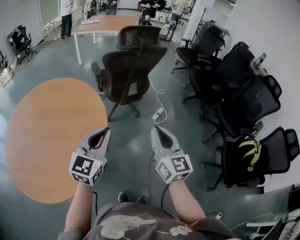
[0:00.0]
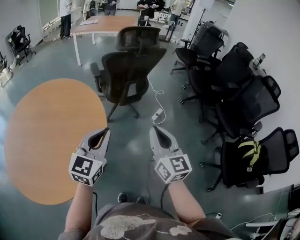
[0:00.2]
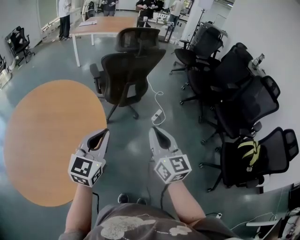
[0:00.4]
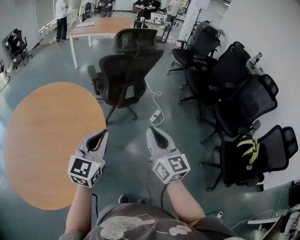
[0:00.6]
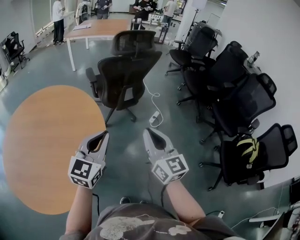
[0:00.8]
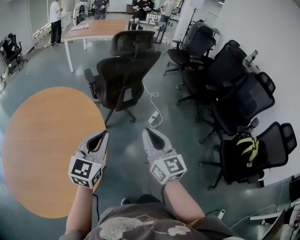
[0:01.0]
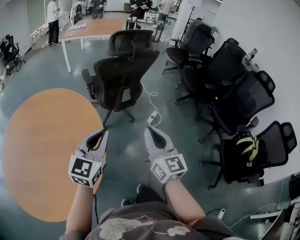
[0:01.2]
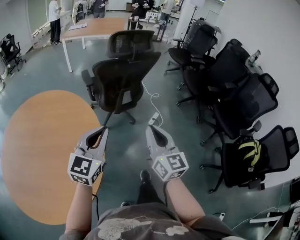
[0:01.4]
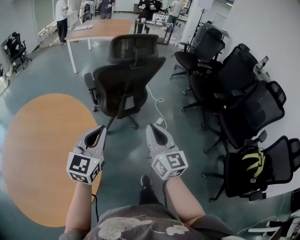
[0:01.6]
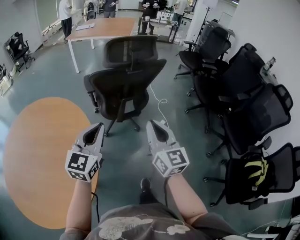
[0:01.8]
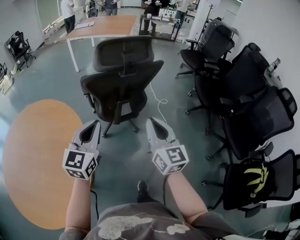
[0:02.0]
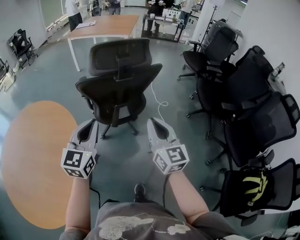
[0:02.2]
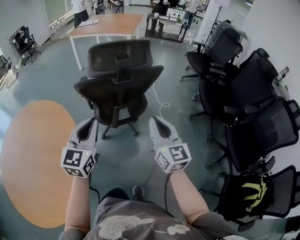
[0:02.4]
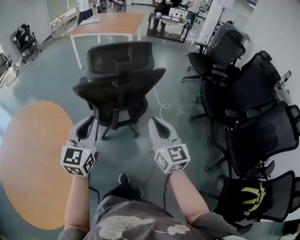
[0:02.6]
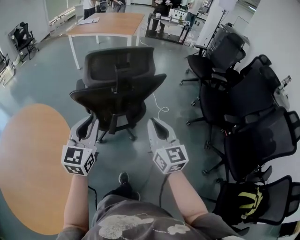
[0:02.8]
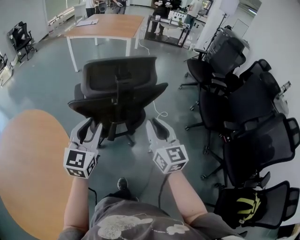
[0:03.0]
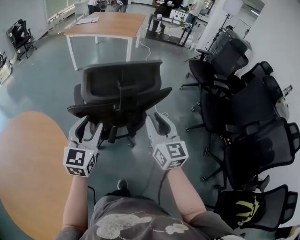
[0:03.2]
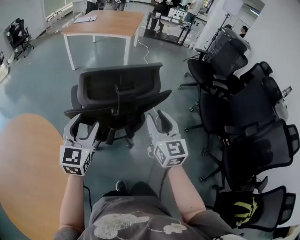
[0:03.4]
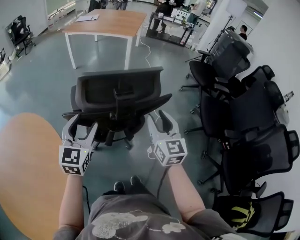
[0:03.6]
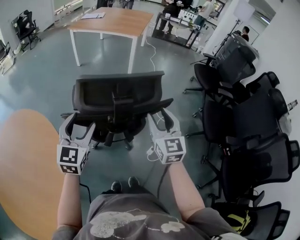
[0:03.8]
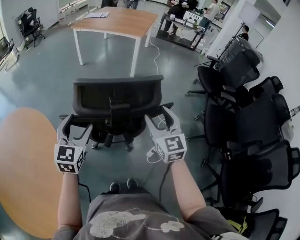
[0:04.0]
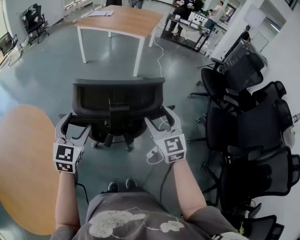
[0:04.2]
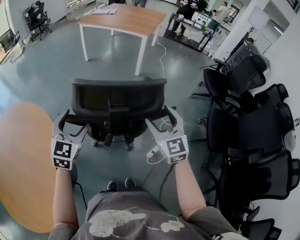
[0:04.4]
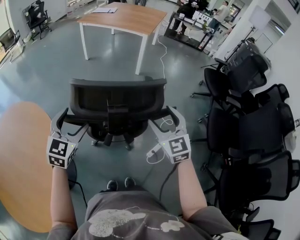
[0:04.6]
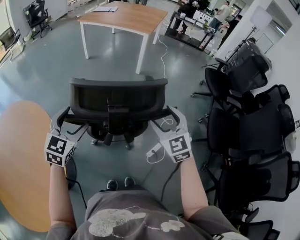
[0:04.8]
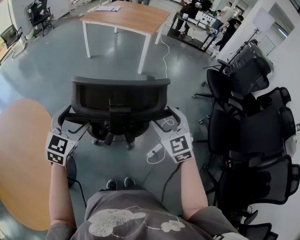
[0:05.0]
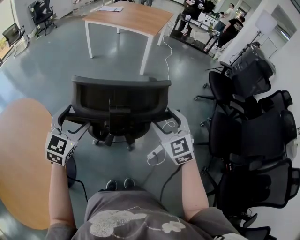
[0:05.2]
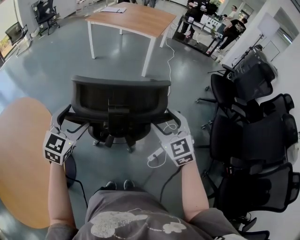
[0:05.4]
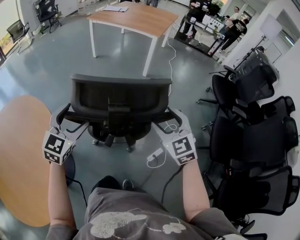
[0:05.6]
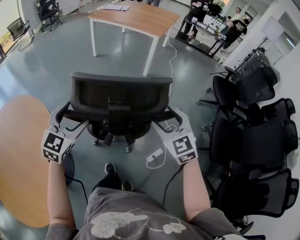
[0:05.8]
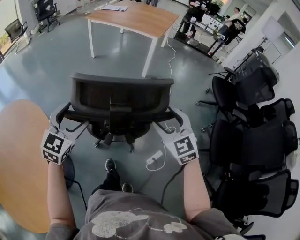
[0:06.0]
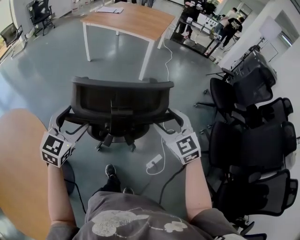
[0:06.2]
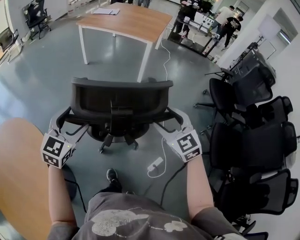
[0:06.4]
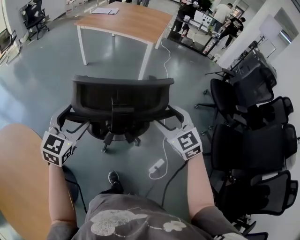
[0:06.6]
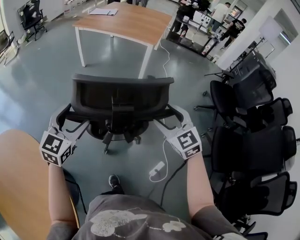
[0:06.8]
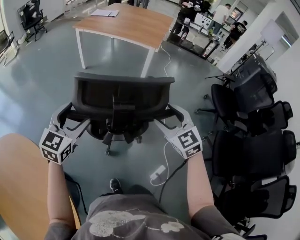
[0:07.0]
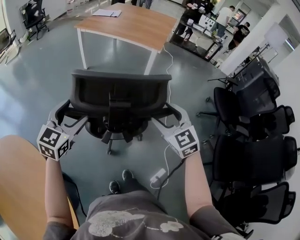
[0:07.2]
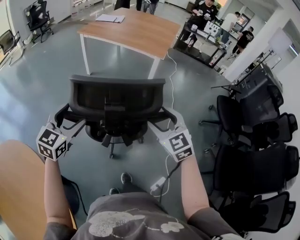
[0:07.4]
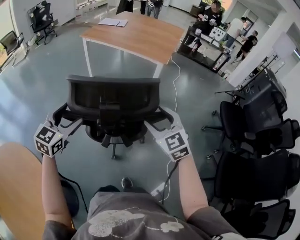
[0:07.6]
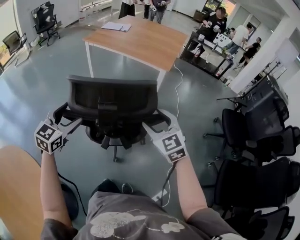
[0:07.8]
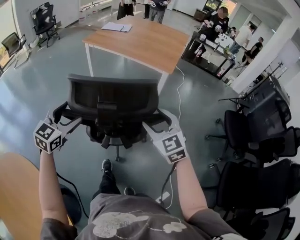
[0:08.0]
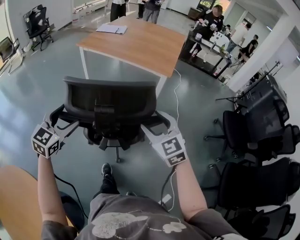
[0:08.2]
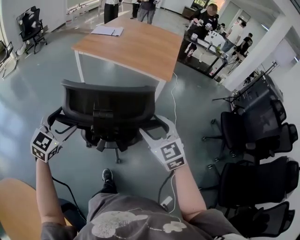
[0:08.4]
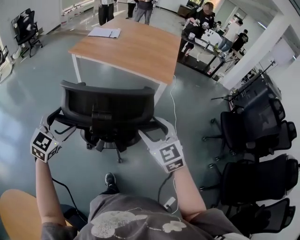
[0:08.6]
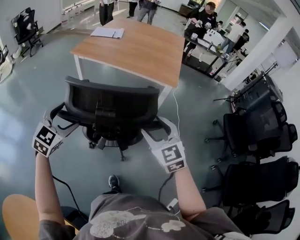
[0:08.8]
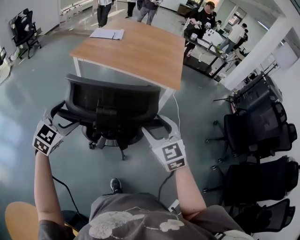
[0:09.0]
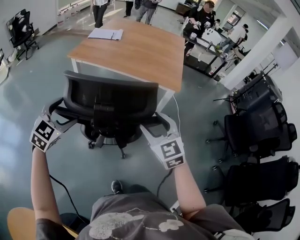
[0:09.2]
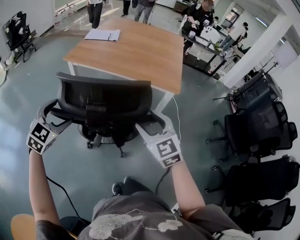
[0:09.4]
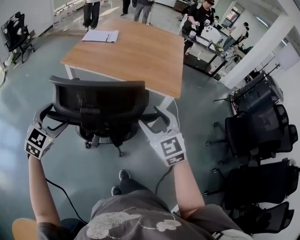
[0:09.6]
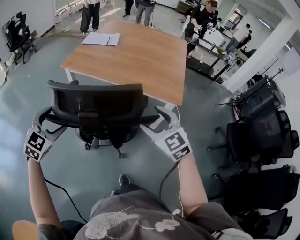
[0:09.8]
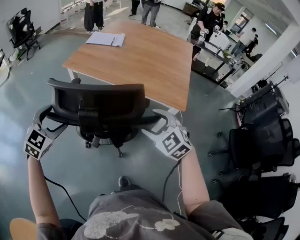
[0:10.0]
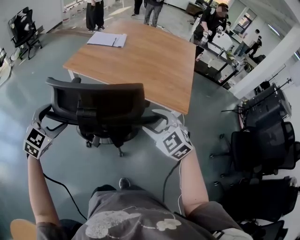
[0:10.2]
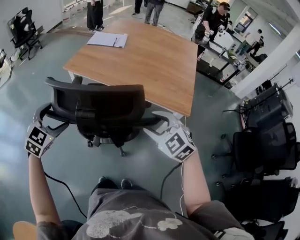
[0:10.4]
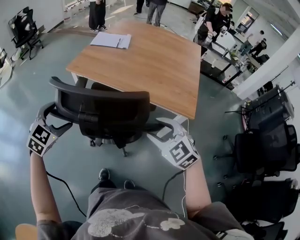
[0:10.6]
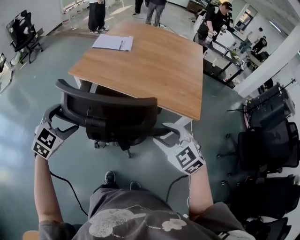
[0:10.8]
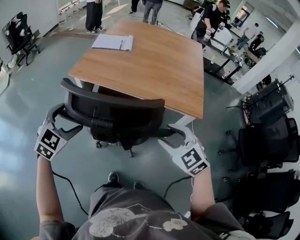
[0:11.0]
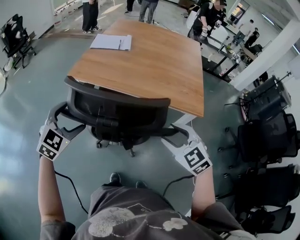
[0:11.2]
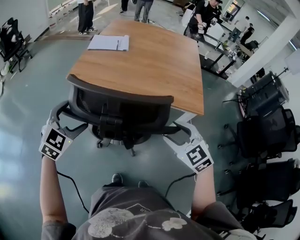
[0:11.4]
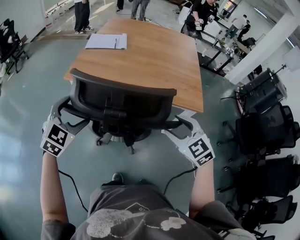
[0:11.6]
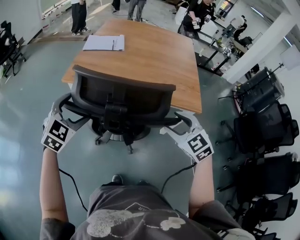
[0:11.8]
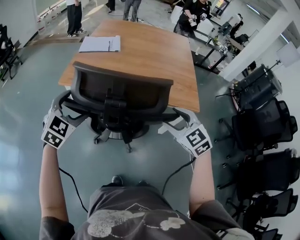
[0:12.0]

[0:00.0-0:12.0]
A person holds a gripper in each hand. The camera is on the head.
0:00.0 to 0:01.6: The two grippers go some 15 cm forward.
0:01.6 to 0:03.0: The two grippers go about 30 cm forward.
0:03.0 to 0:04.4: Both grippers move forward, about 15 cm. The left gripper rotates roughly 20 degrees, and opens its fingers, while the right gripper changes its angle by roughly 30 degrees, and opens up.
0:04.4 to 0:06.0: The right gripper moves forward, about 5 cm.
0:06.0 to 0:07.6: The grippers both shift forward by roughly 30 cm.
0:07.6 to 0:09.0: Both grippers move forward and to the left, roughly 30 cm. The left gripper rotates some 20 degrees.
0:09.0 to 0:10.4: The two grippers go about 20 cm forward. The right gripper rotates roughly 30 degrees.
0:10.4 to 0:12.0: The left gripper is displaced forward by some 15 cm. The right gripper travels forward by about 10 cm, and rotates approximately 20 degrees.

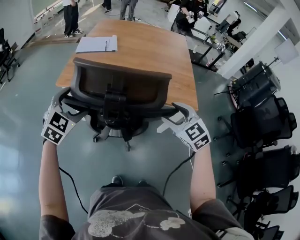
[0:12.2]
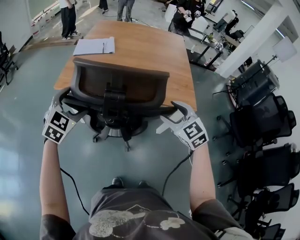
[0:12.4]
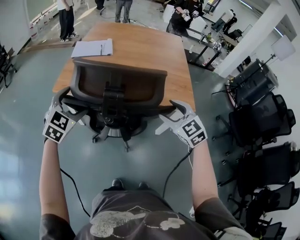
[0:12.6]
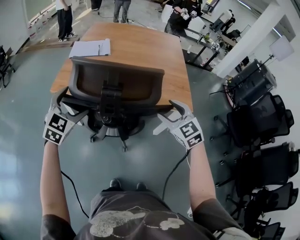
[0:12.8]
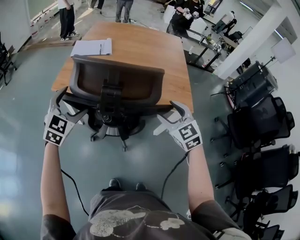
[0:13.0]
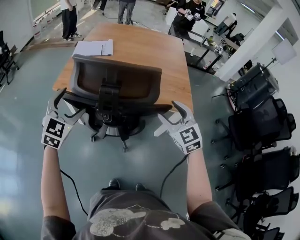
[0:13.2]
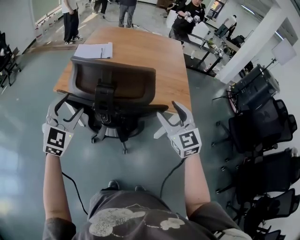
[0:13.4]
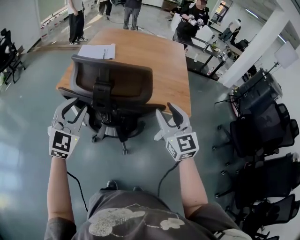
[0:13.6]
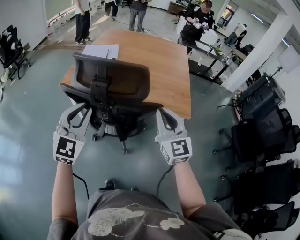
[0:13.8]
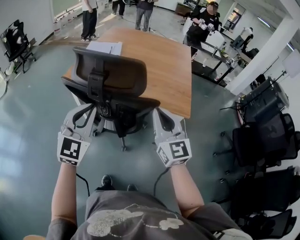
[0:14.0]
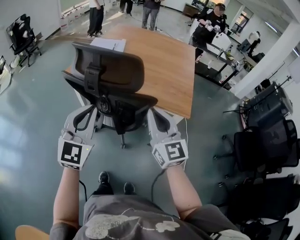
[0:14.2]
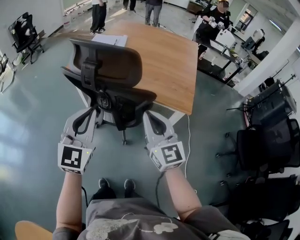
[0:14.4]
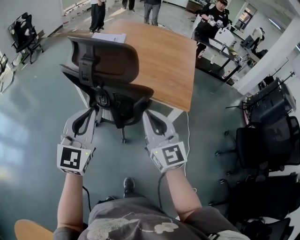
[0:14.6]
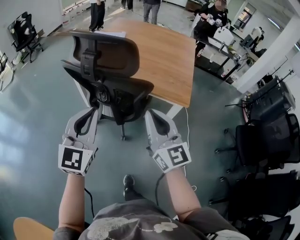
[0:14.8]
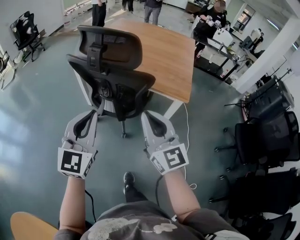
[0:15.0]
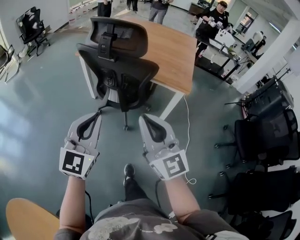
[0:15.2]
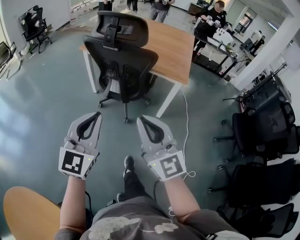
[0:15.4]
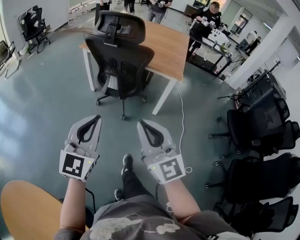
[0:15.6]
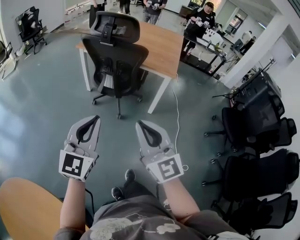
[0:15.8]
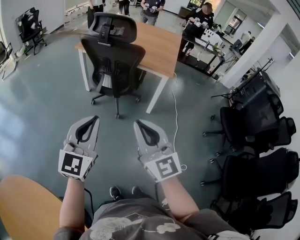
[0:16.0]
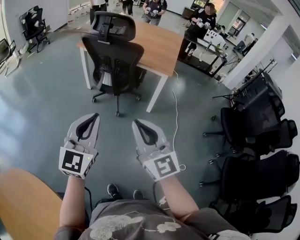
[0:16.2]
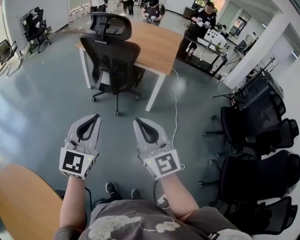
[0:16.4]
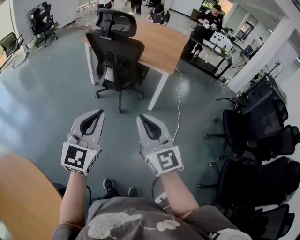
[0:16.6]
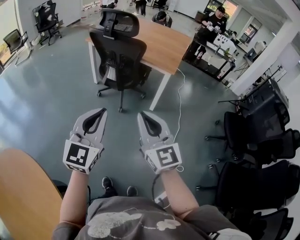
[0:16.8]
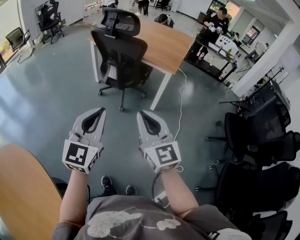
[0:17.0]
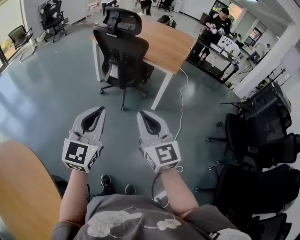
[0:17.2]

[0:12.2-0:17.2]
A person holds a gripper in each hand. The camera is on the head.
0:12.2 to 0:13.8: The left gripper goes roughly 15 cm to the right, upward and backward, turns by some 20 degrees, and closes up. Meanwhile the right gripper goes about 10 cm upward, tips its fingers upward by approximately 30 degrees, and closes.
0:13.8 to 0:15.6: Both grippers are carried backward, some 40 cm. The right gripper turns by about 20 degrees.
0:15.6 to 0:17.2: The left gripper is displaced backward and to the right by approximately 15 cm. The right gripper travels to the right and backward by roughly 15 cm.

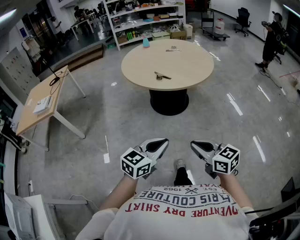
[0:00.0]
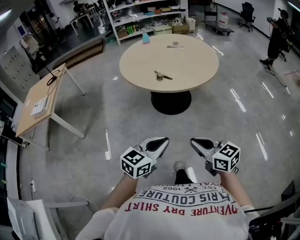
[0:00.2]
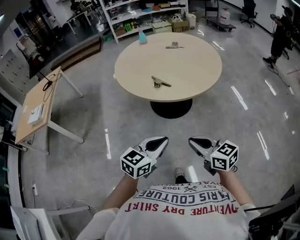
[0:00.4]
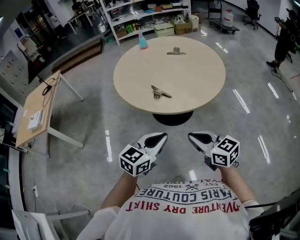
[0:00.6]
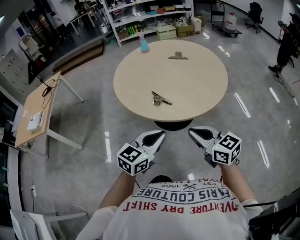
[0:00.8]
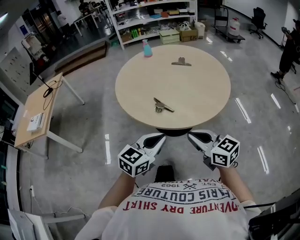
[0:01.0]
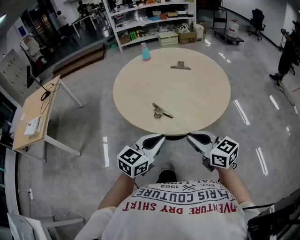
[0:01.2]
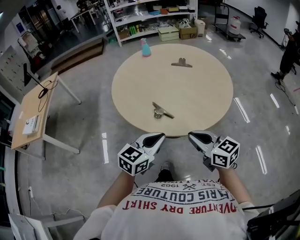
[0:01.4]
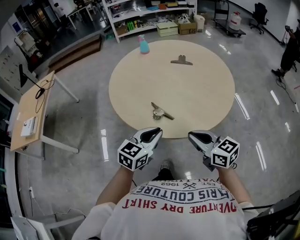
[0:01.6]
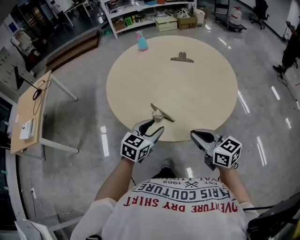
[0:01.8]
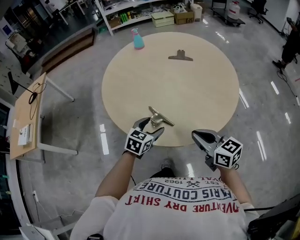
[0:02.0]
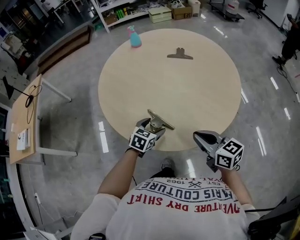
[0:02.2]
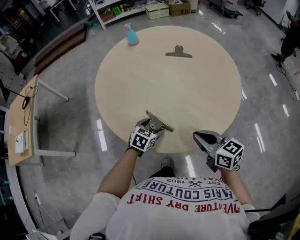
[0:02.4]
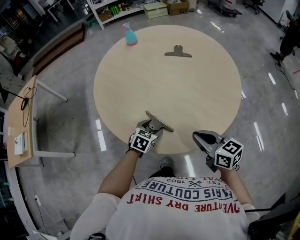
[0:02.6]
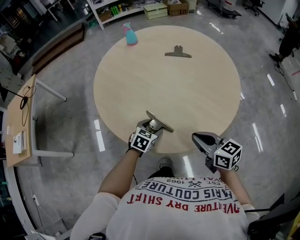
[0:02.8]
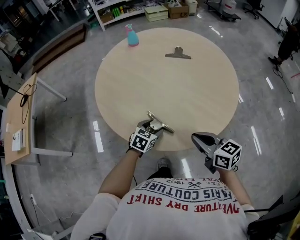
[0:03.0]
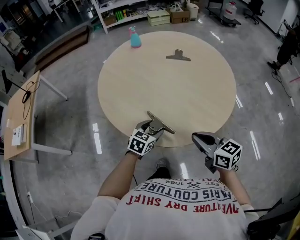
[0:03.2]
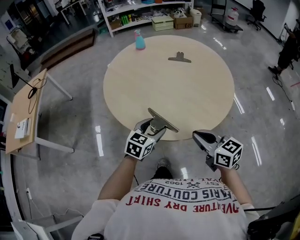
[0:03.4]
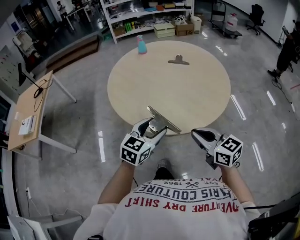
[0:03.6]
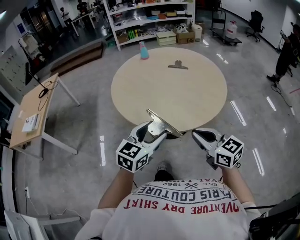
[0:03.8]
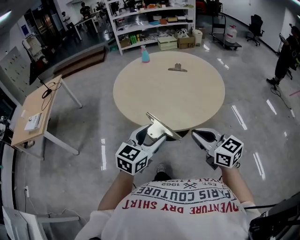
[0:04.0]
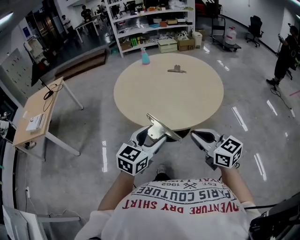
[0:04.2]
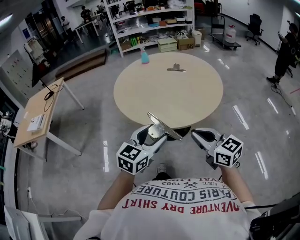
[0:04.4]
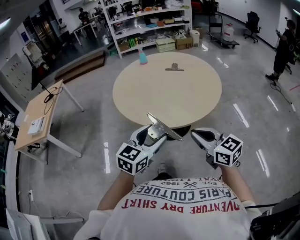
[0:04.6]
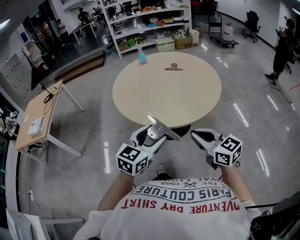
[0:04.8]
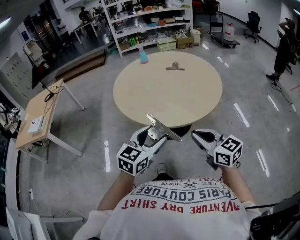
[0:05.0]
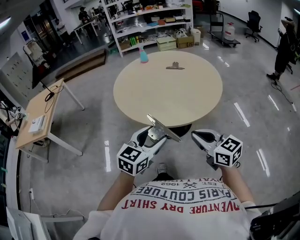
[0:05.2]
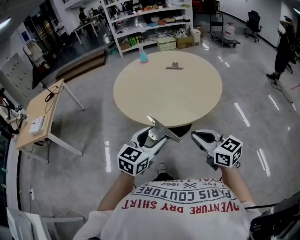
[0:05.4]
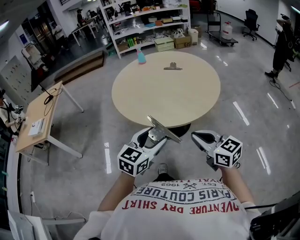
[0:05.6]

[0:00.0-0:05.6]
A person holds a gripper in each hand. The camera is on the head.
0:00.0 to 0:01.4: The two grippers travel together, forward, approximately 50 cm.
0:01.4 to 0:02.8: The right gripper is displaced forward and downward by some 15 cm, while the left gripper shifts some 35 cm downward and forward, points its fingers approximately 30 degrees further downward, and opens its fingers.
0:02.8 to 0:04.2: The left gripper travels backward and upward by about 40 cm, and points its fingers approximately 30 degrees further upward; the right gripper travels backward and upward by approximately 30 cm, and swivels roughly 20 degrees.
0:04.2 to 0:05.6: The grippers move only a little.

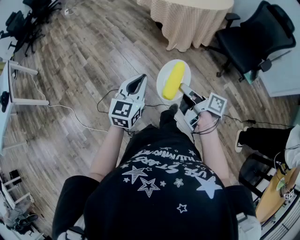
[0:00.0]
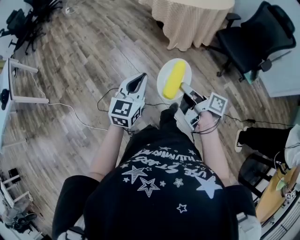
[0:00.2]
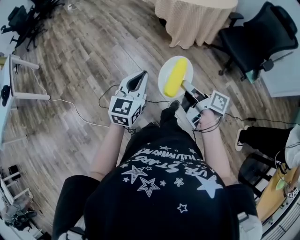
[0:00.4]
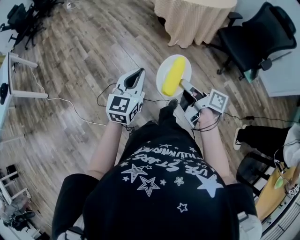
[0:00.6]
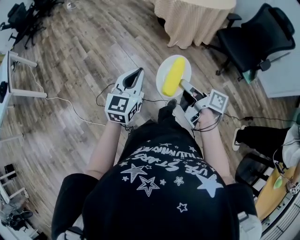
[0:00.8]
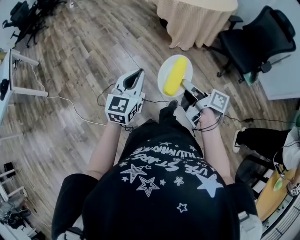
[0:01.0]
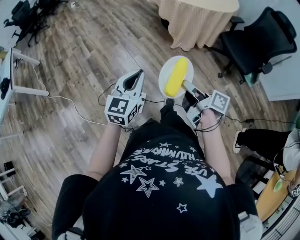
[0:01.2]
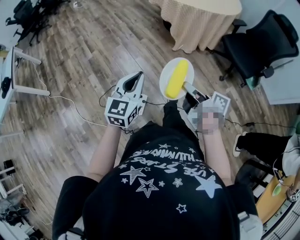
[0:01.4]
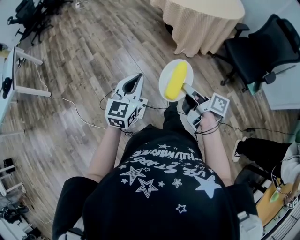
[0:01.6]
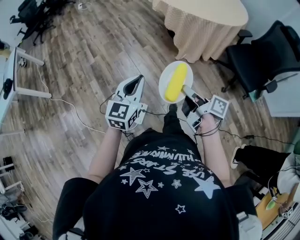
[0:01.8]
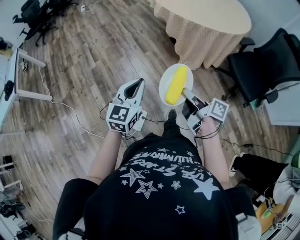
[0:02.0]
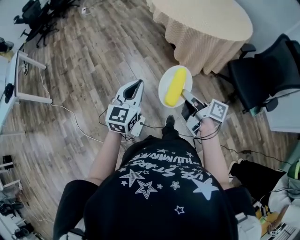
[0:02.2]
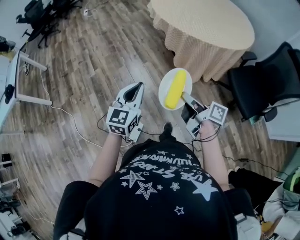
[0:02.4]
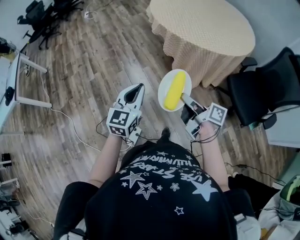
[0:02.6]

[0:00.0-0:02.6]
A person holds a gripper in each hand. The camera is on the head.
0:00.0 to 0:01.2: The left gripper changes place by about 5 cm.
0:01.2 to 0:02.6: The grippers both shift forward by roughly 25 cm.
